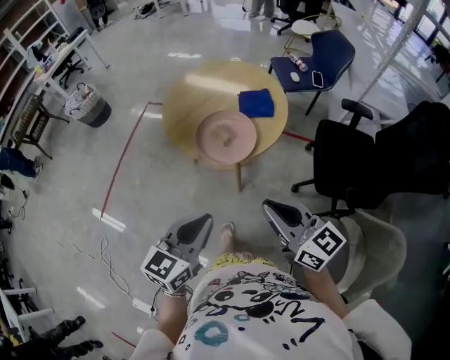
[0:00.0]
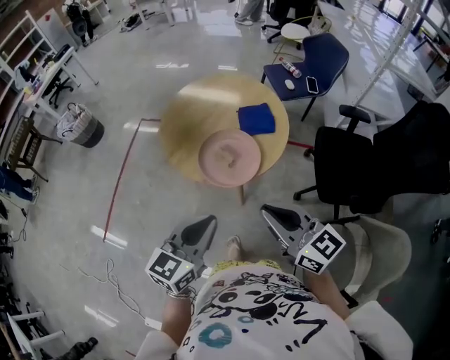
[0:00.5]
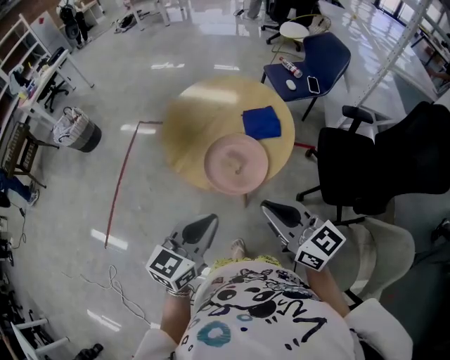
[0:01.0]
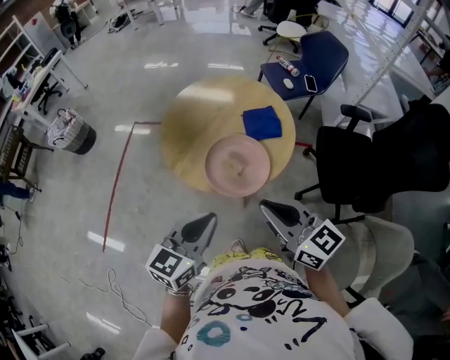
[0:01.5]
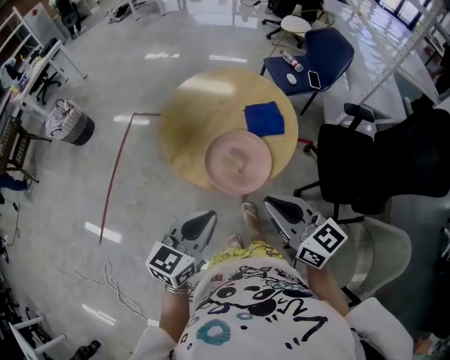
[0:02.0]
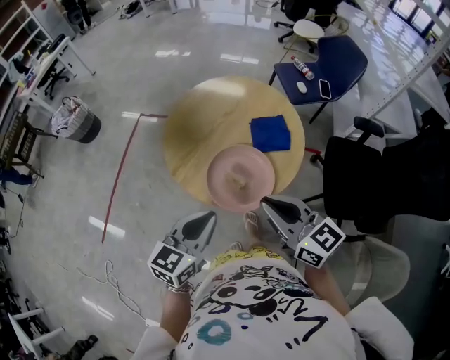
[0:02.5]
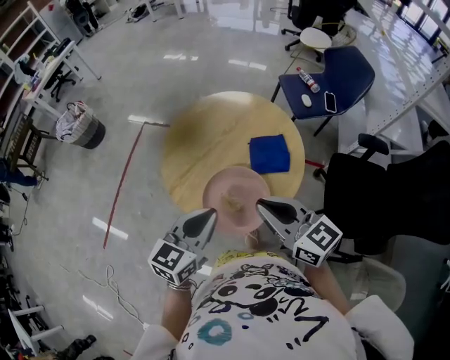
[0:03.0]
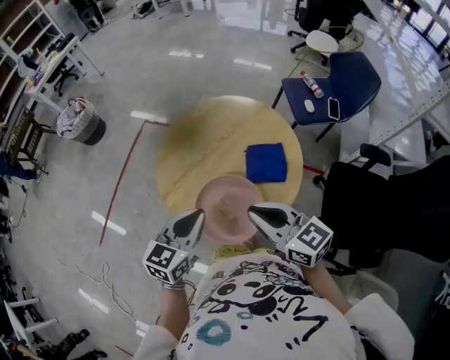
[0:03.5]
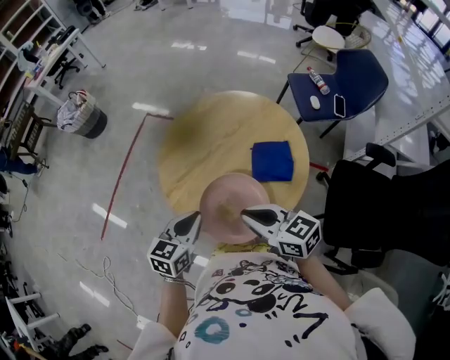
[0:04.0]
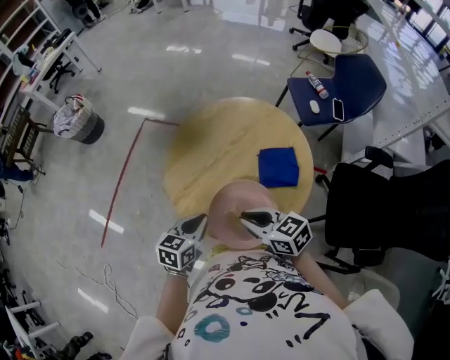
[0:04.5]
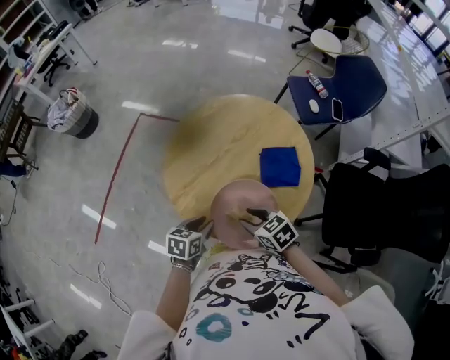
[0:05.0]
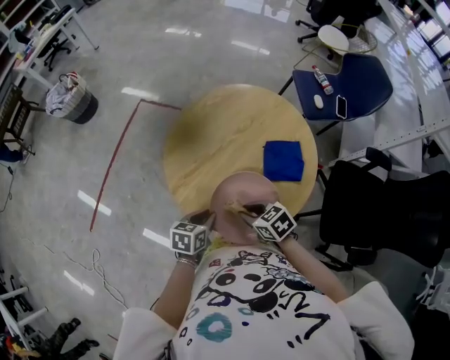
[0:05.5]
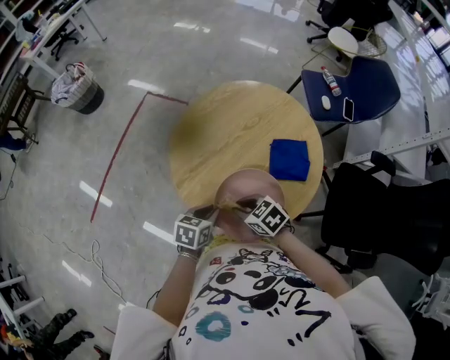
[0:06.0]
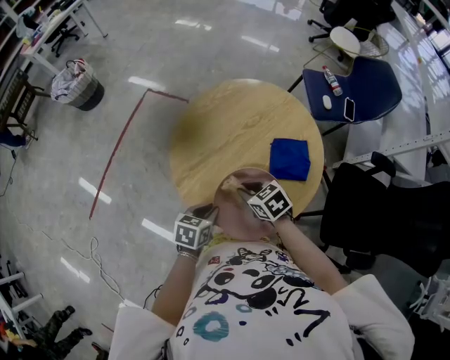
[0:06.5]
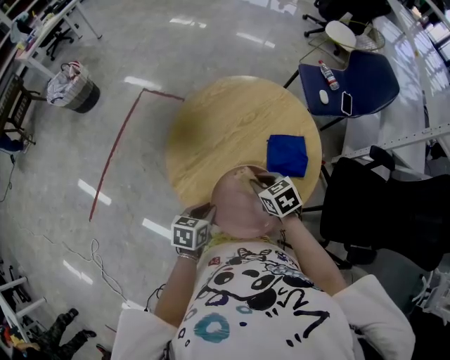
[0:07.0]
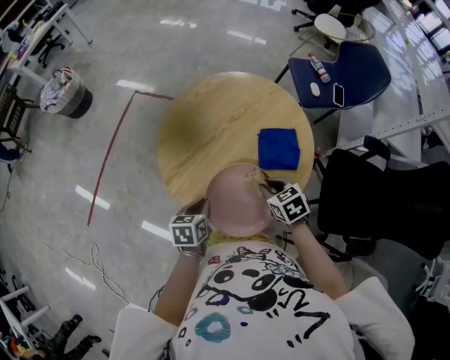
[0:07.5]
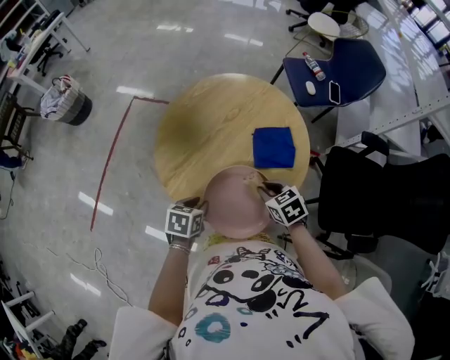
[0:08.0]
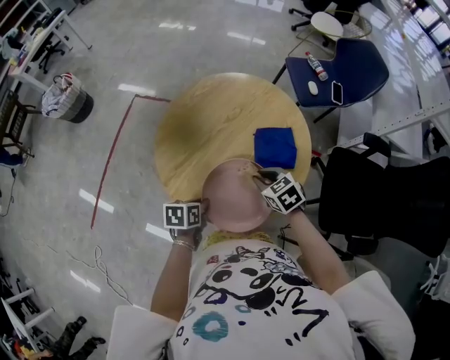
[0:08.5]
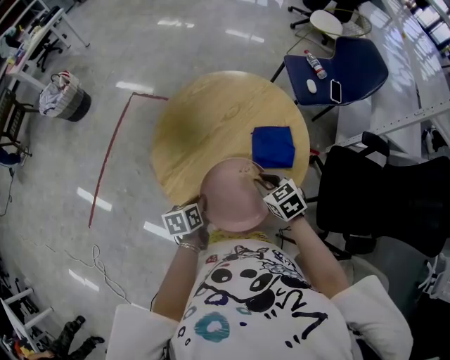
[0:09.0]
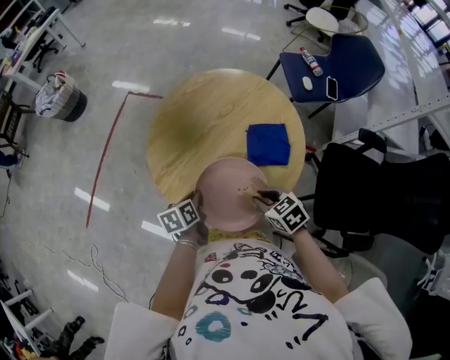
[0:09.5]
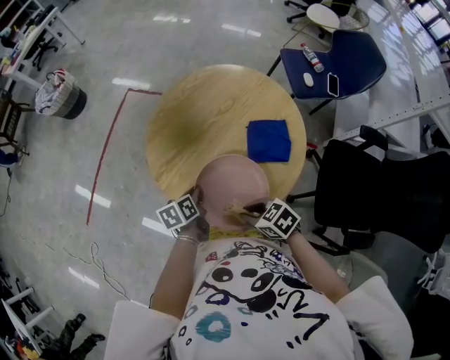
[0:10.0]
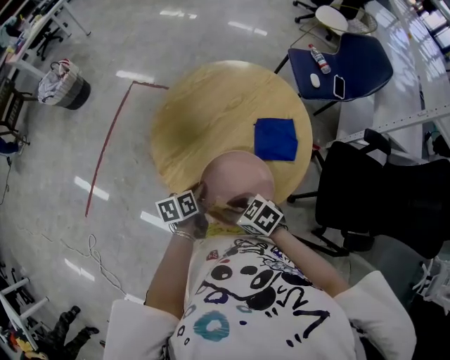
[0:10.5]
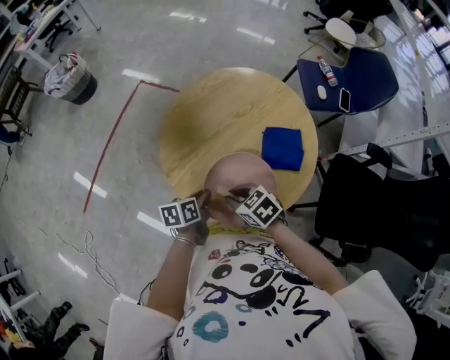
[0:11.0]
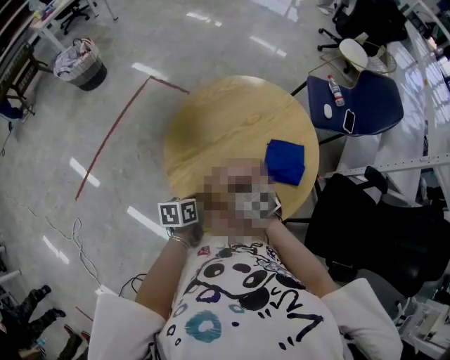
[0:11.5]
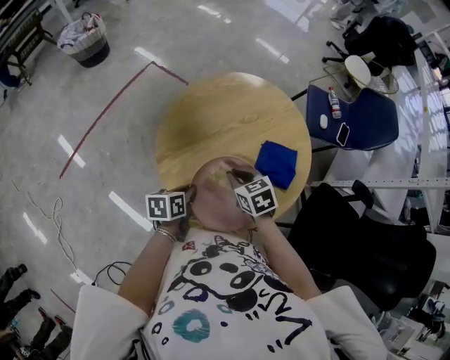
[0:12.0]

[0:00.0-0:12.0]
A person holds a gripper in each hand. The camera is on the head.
0:00.0 to 0:02.0: The two grippers go approximately 15 cm forward and to the left.
0:02.0 to 0:04.0: Both grippers move forward and downward, about 20 cm. The left gripper turns by some 20 degrees, while the right gripper rotates some 30 degrees.
0:04.0 to 0:06.0: The grippers both shift downward by roughly 15 cm. The right gripper angles its fingers downward, by roughly 30 degrees. Meanwhile the left gripper rotates some 20 degrees.
0:06.0 to 0:08.0: The right gripper moves roughly 15 cm, and changes its angle by roughly 20 degrees.
0:08.0 to 0:10.0: The left gripper swivels about 40 degrees; the right gripper moves about 10 cm, and changes its angle by roughly 30 degrees.
0:10.0 to 0:12.0: The right gripper travels forward by approximately 15 cm.

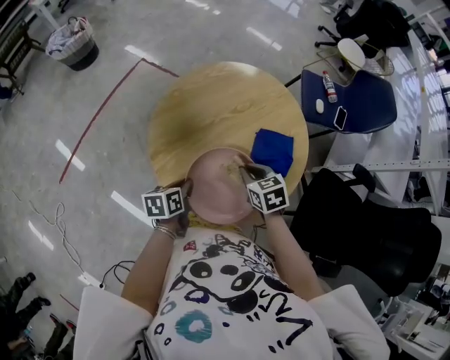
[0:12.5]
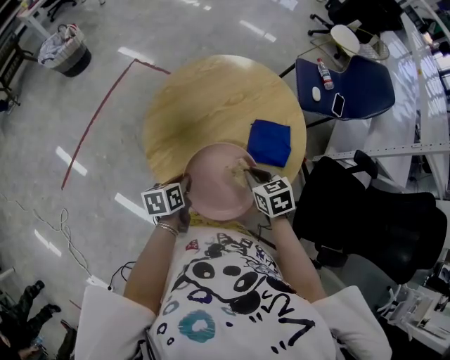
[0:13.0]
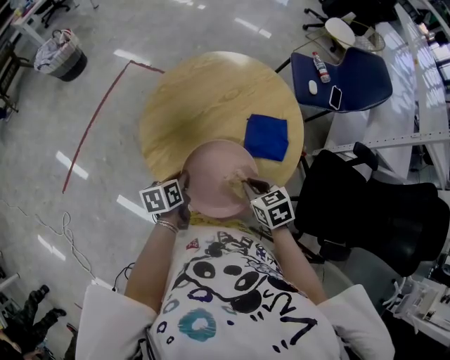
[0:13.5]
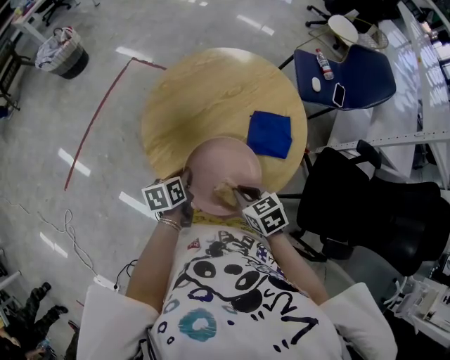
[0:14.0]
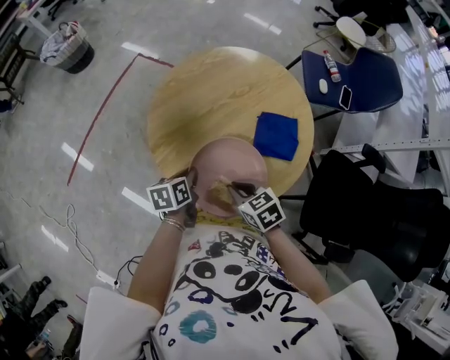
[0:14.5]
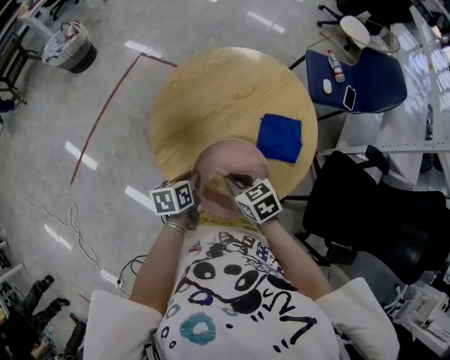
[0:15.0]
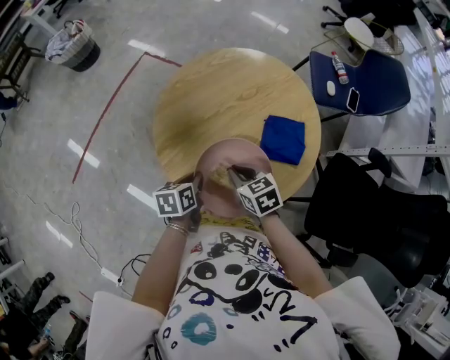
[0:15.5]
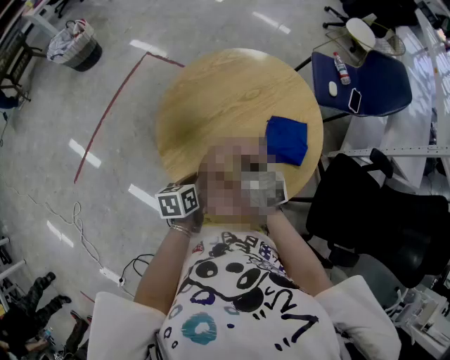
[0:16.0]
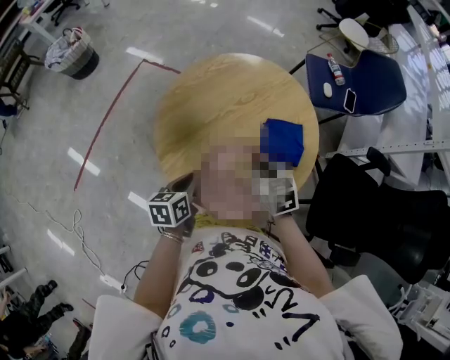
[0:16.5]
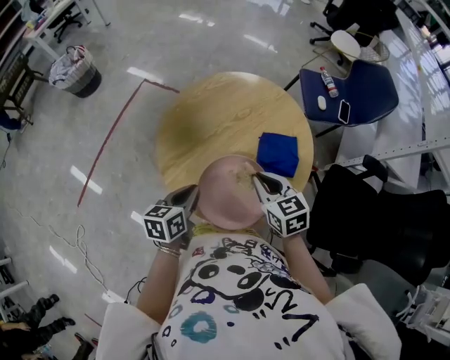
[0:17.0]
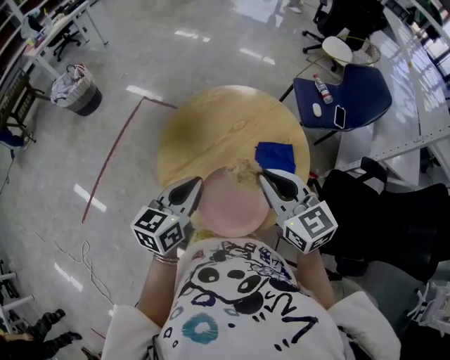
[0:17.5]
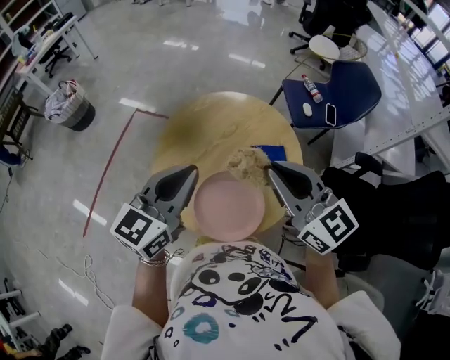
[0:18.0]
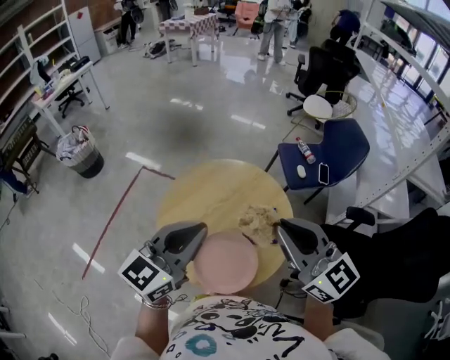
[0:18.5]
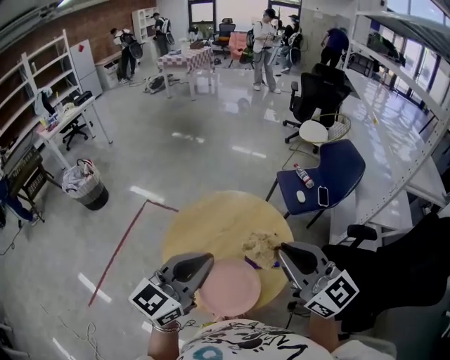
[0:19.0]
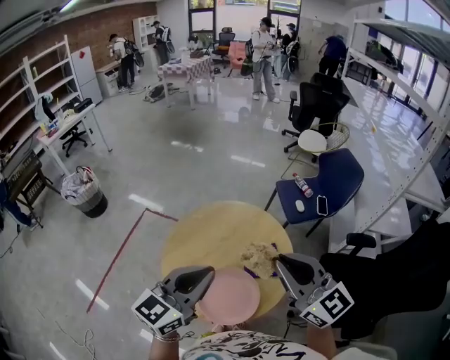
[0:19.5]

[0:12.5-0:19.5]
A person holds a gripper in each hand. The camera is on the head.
0:12.5 to 0:14.5: The right gripper heads backward and to the left, covering roughly 10 cm.
0:14.5 to 0:16.0: The right gripper shifts some 10 cm forward.
0:16.0 to 0:17.5: Both grippers move upward, about 25 cm. The right gripper swivels roughly 30 degrees. The left gripper swivels about 40 degrees.
0:17.5 to 0:19.5: Both grippers move upward and to the right, some 20 cm. The left gripper swivels roughly 30 degrees; the right gripper changes its angle by about 20 degrees.

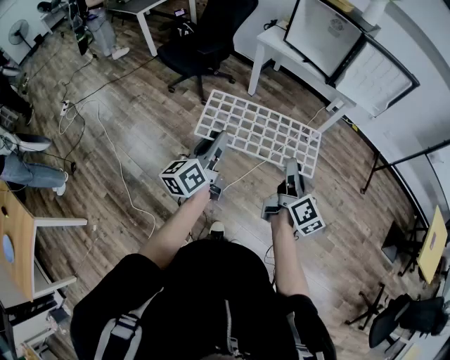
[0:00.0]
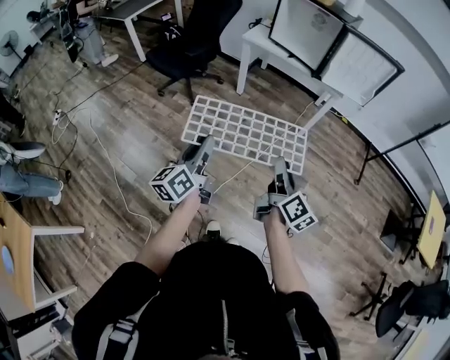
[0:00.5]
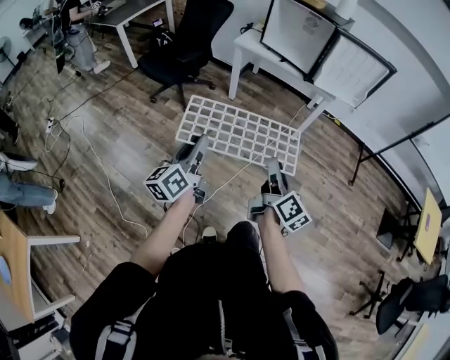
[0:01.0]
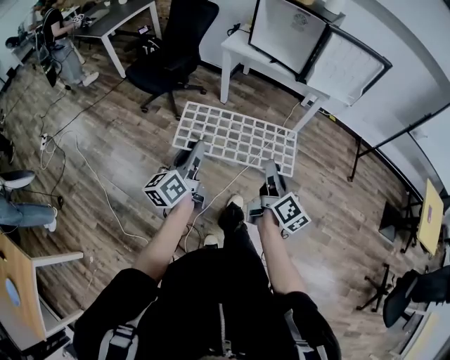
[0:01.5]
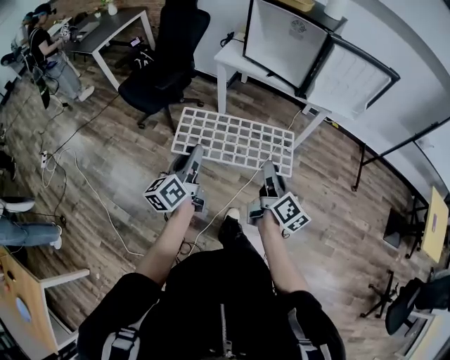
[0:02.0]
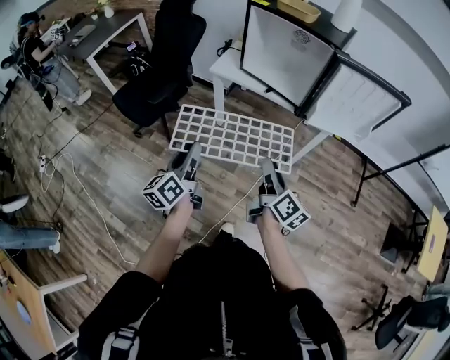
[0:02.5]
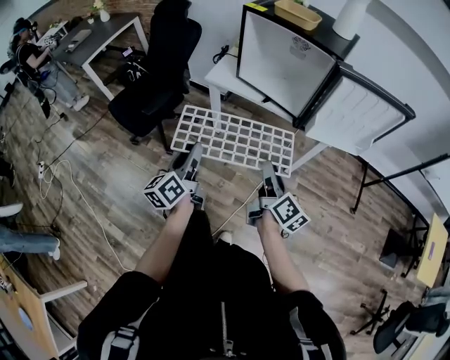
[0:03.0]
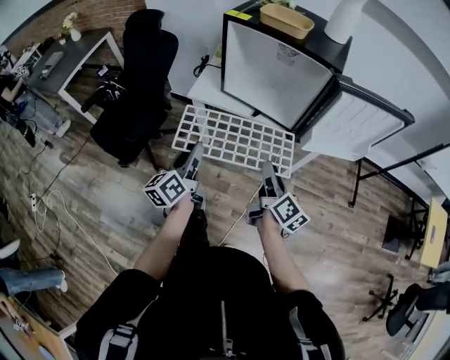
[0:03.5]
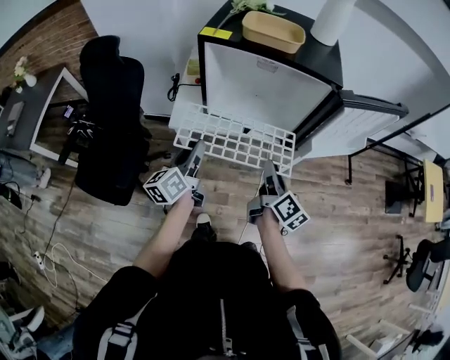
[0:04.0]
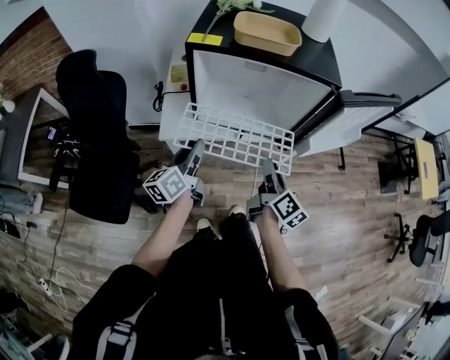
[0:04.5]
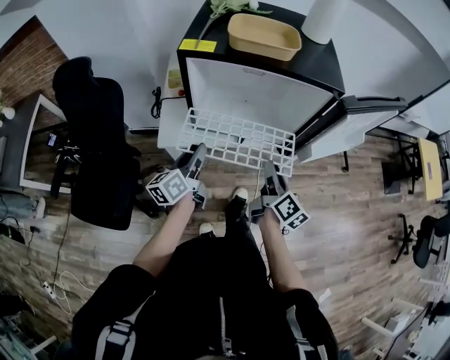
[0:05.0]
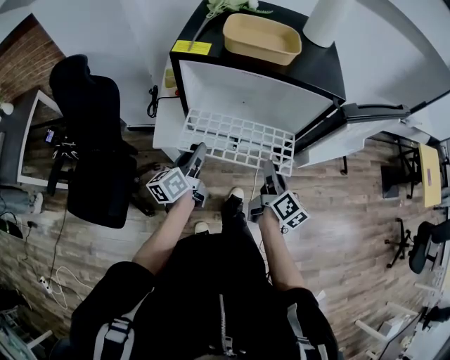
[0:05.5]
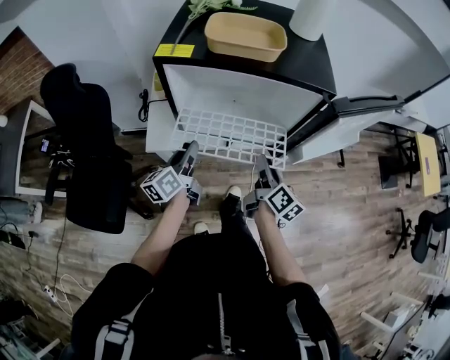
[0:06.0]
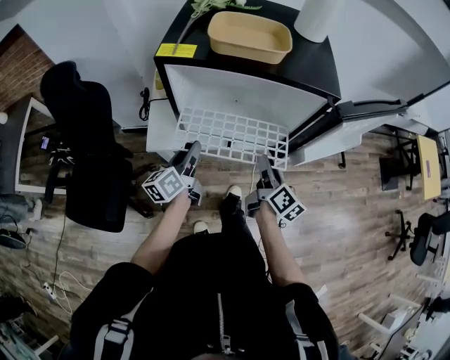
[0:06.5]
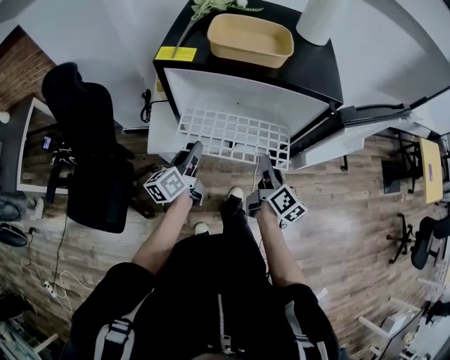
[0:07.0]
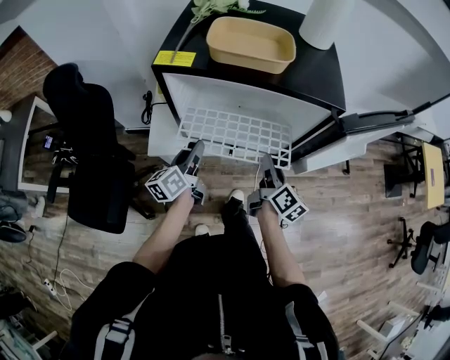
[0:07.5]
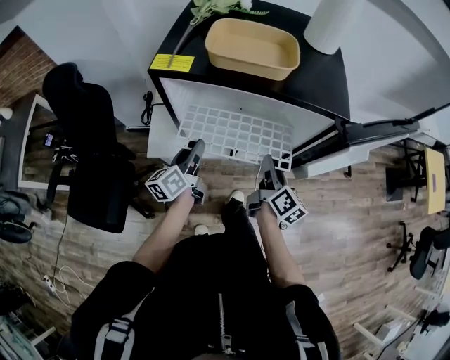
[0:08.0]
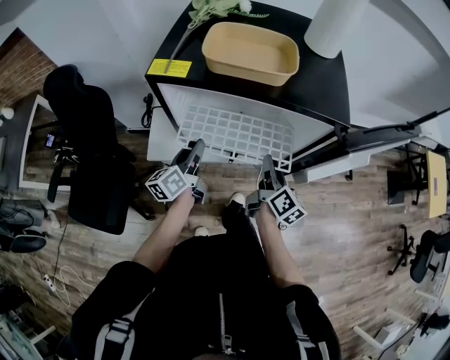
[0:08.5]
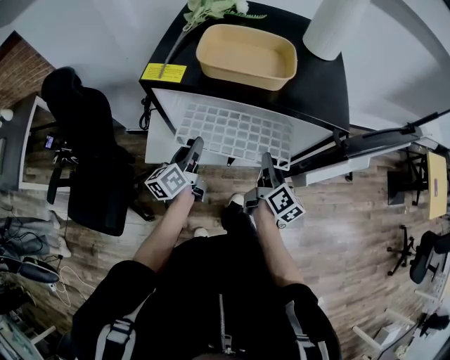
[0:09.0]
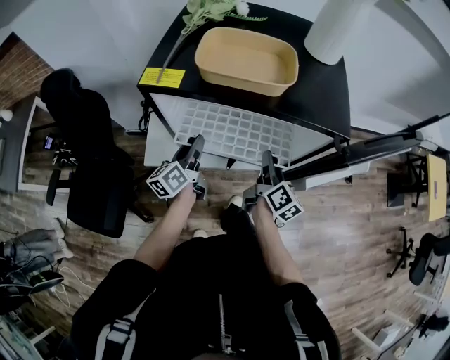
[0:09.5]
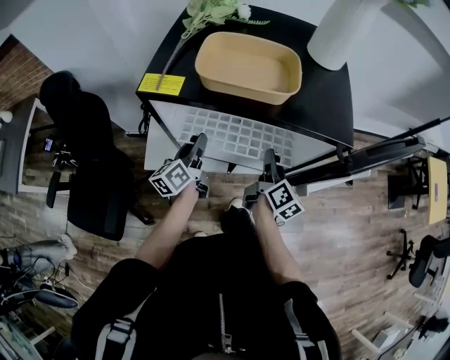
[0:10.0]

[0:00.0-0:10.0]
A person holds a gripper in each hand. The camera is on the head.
0:00.0 to 0:02.0: Both grippers move forward, approximately 15 cm.
0:02.0 to 0:04.0: Both grippers are carried forward, roughly 50 cm. The right gripper rotates roughly 20 degrees. Meanwhile the left gripper changes its angle by approximately 20 degrees.
0:04.0 to 0:06.0: The right gripper is displaced forward by about 10 cm. The left gripper shifts some 15 cm forward and downward.
0:06.0 to 0:08.0: The grippers both shift forward by about 5 cm.
0:08.0 to 0:10.0: Both grippers travel together forward, roughly 10 cm.
